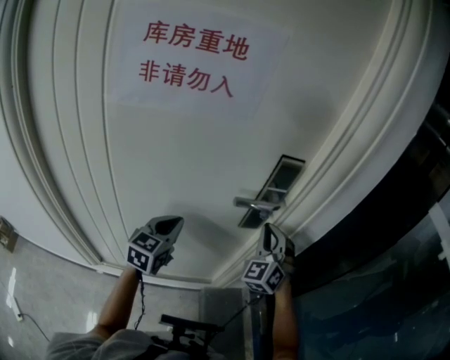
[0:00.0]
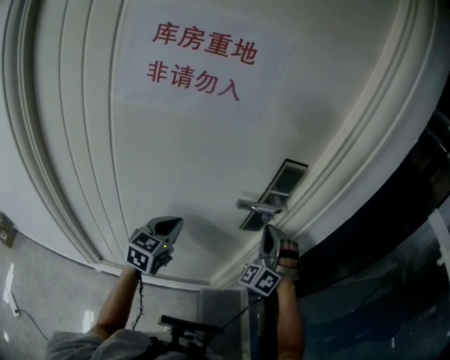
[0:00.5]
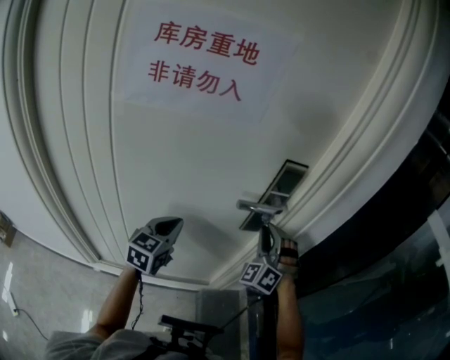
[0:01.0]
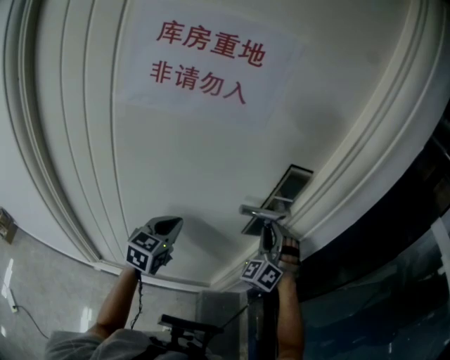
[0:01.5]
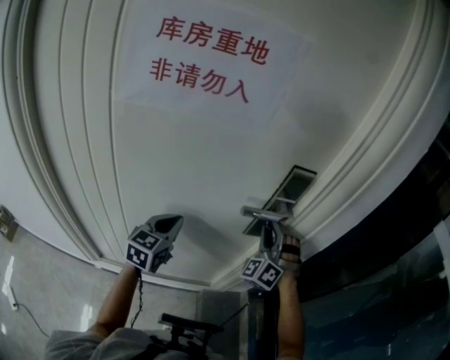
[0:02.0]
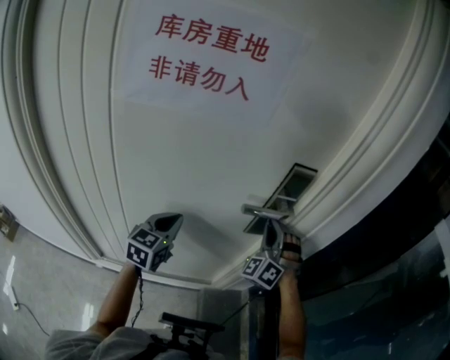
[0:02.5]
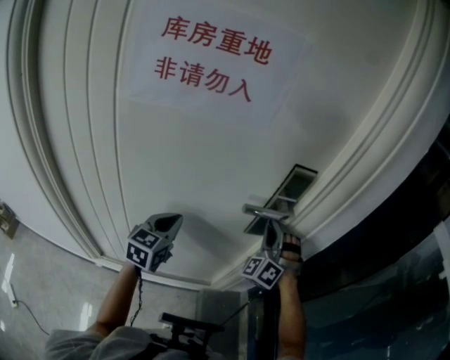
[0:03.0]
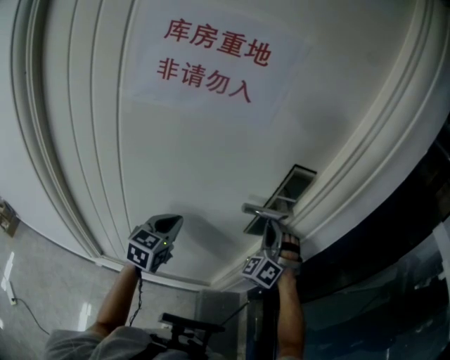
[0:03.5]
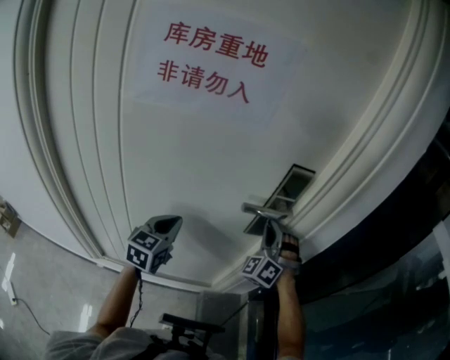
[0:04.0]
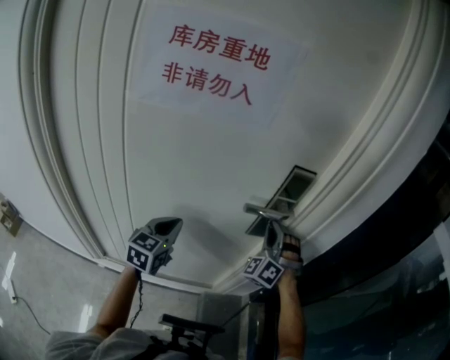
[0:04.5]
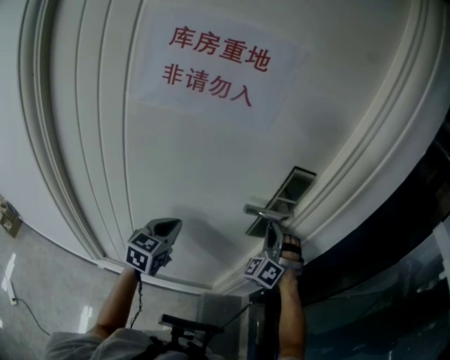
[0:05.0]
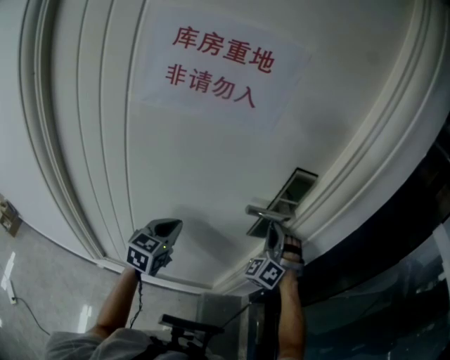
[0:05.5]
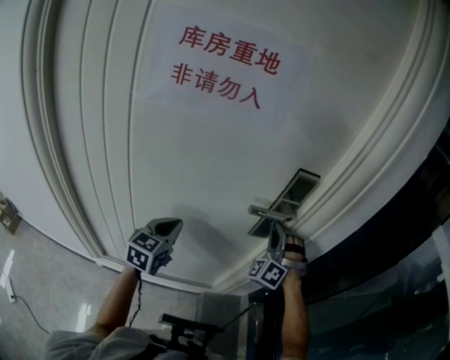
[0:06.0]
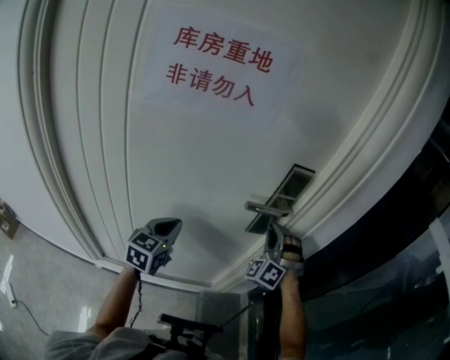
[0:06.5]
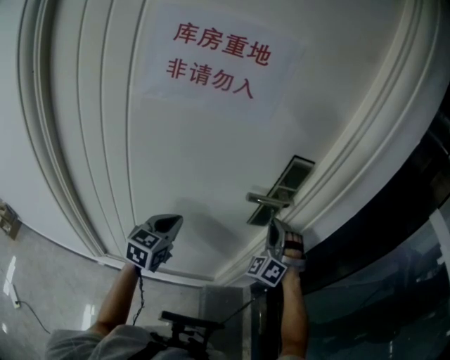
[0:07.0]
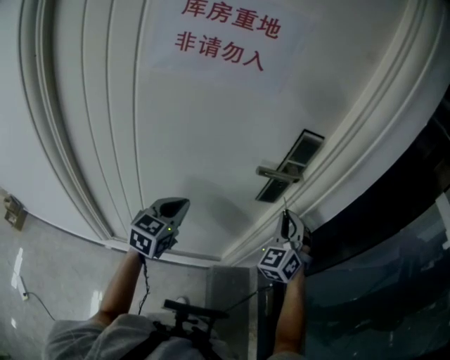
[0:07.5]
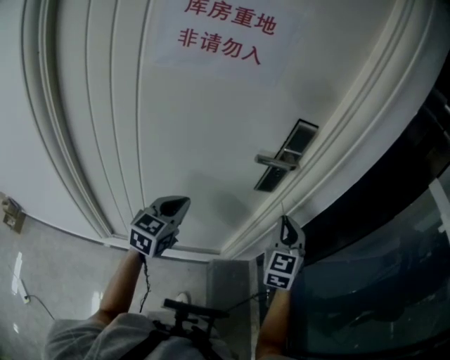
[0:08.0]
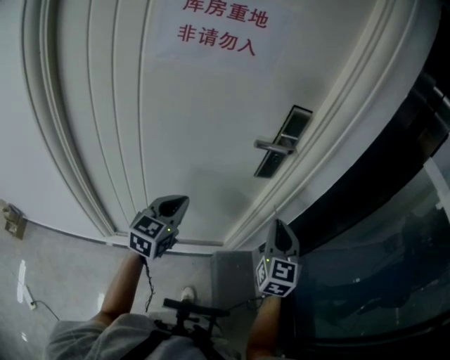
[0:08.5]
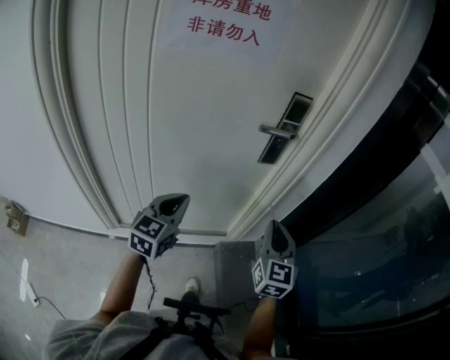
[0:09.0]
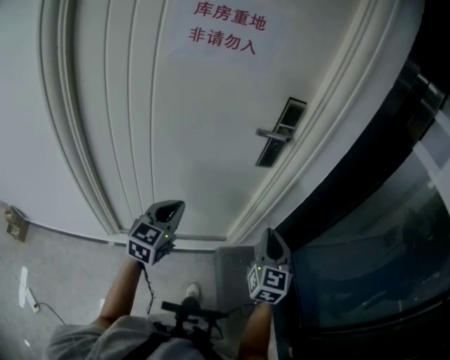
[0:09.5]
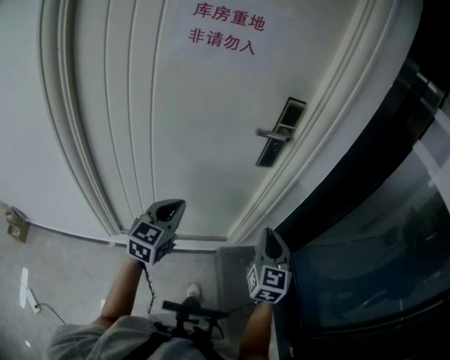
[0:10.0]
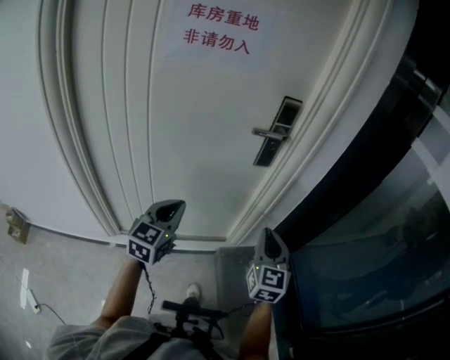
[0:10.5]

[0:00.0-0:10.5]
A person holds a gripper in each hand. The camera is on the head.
0:00.0 to 0:02.0: The right gripper rotates some 20 degrees, and opens.
0:02.0 to 0:06.5: The grippers make only small movements.
0:06.5 to 0:08.5: The right gripper shifts some 20 cm backward, and rotates around the line of its fingers by roughly 70 degrees, clockwise from behind. Meanwhile the left gripper goes about 10 cm backward.
0:08.5 to 0:10.5: Both grippers move backward, about 10 cm.

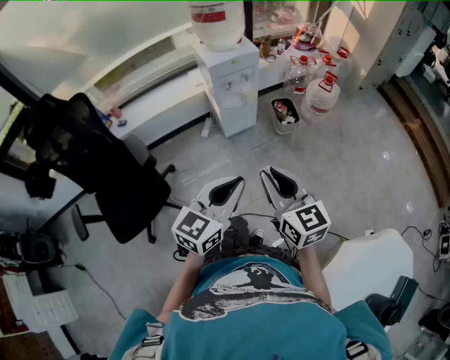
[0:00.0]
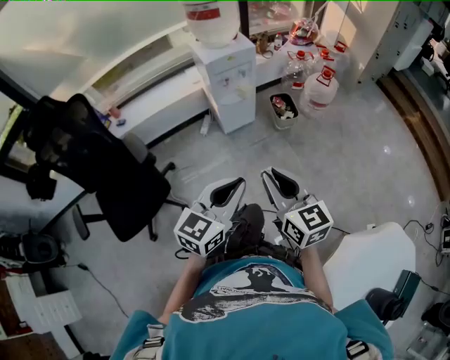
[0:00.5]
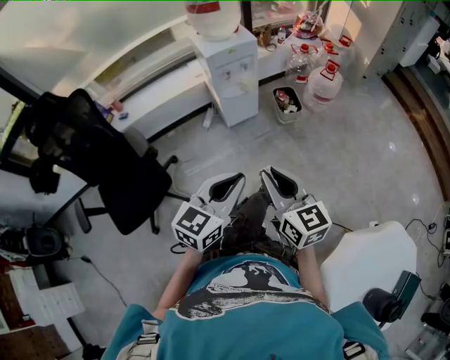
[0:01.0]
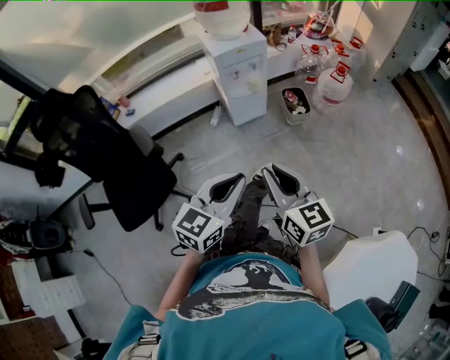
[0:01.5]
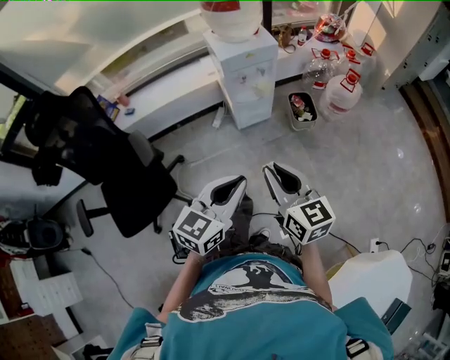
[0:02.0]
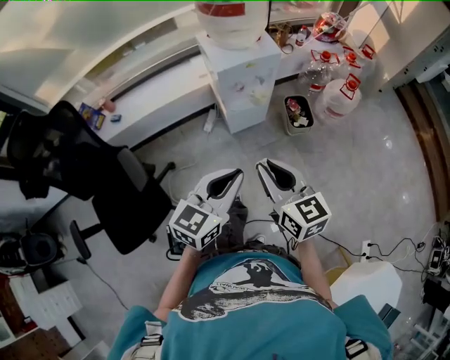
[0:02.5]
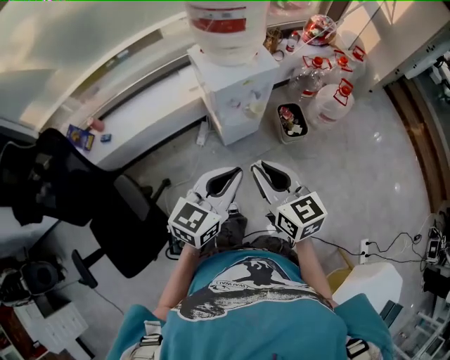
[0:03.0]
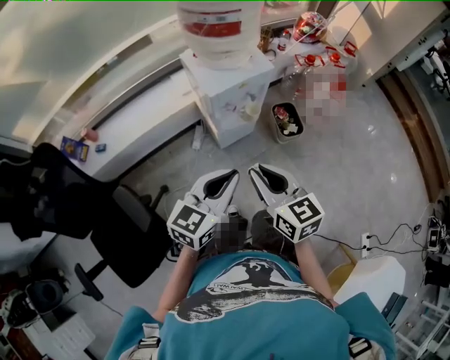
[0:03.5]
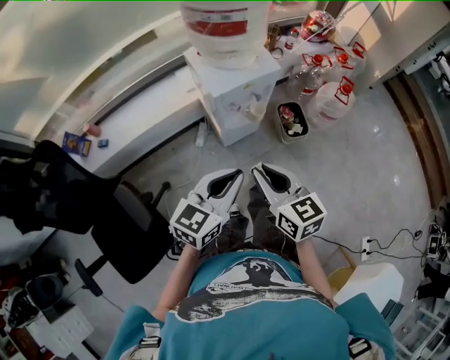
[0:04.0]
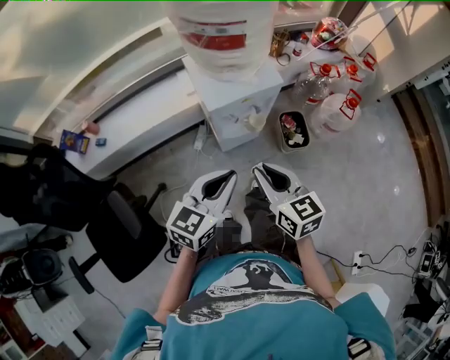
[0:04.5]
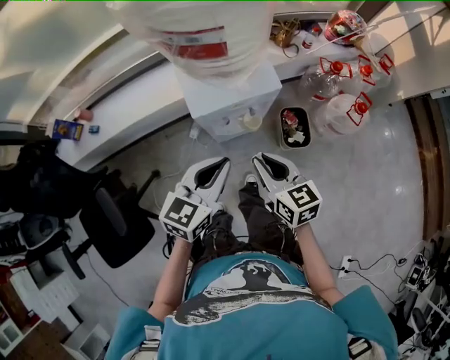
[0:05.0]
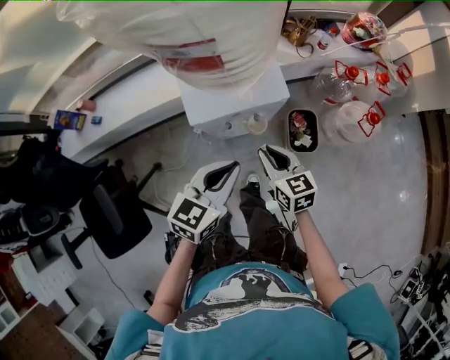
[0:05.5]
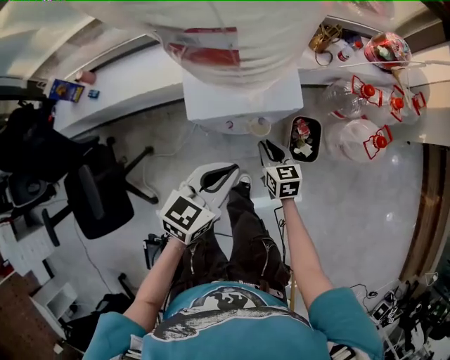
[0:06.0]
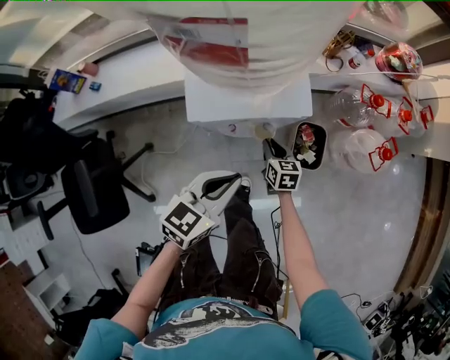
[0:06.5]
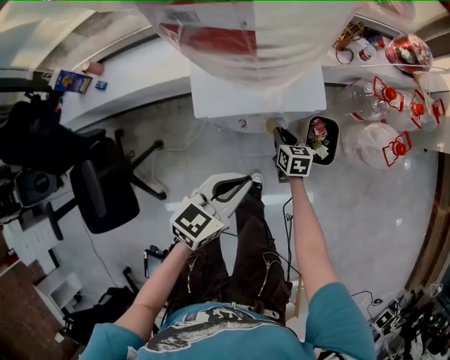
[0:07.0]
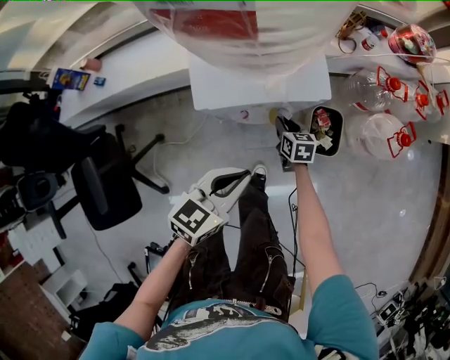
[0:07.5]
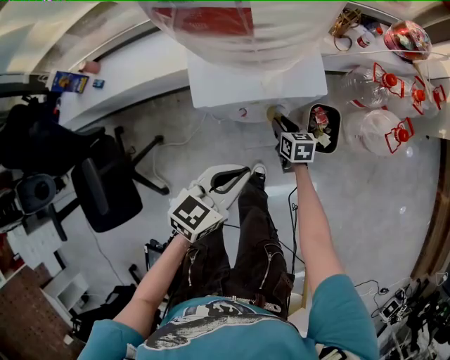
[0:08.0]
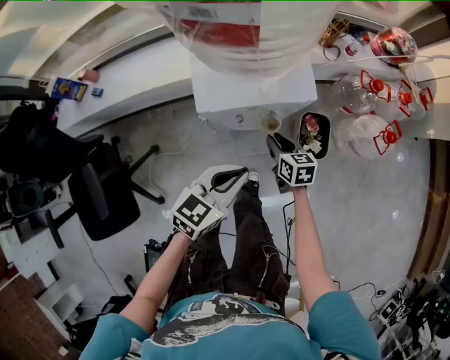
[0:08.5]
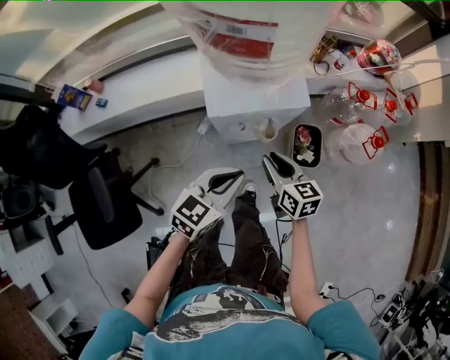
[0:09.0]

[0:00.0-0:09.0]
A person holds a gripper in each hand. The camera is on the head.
0:00.0 to 0:02.0: The two grippers go roughly 10 cm forward.
0:02.0 to 0:04.5: The two grippers go about 30 cm forward.
0:04.5 to 0:07.0: The right gripper is displaced downward and forward by about 40 cm, and swivels about 20 degrees; the left gripper travels downward, forward and to the right by about 20 cm.
0:07.0 to 0:09.0: The right gripper shifts about 25 cm upward and backward. The left gripper shifts by about 5 cm.

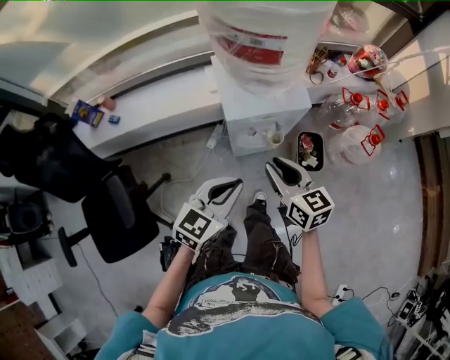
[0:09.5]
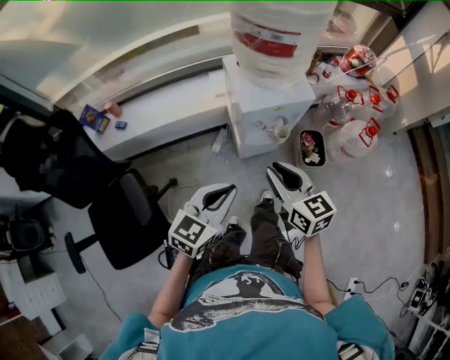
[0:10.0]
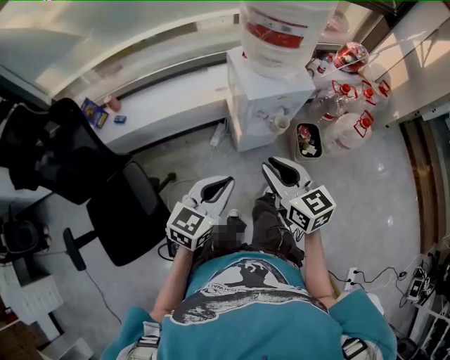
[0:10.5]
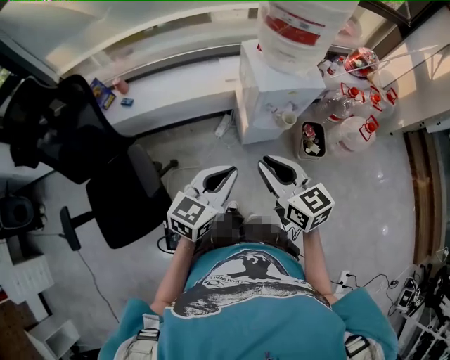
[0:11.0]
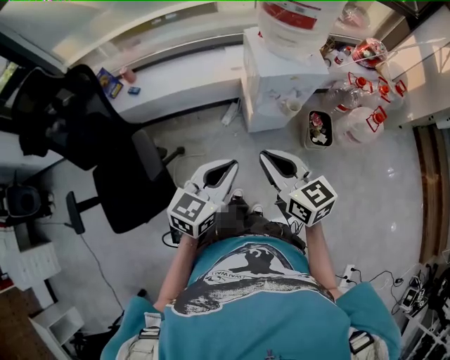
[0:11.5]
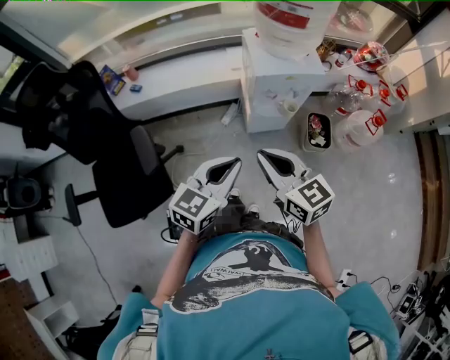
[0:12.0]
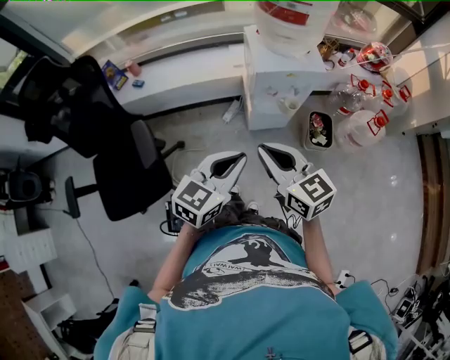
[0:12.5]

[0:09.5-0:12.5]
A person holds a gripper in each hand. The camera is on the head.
0:09.5 to 0:11.0: The left gripper moves to the left and backward, about 15 cm. The right gripper moves backward, to the left and upward, roughly 20 cm.
0:11.0 to 0:12.5: The left gripper shifts roughly 5 cm to the right, while the right gripper moves about 5 cm.

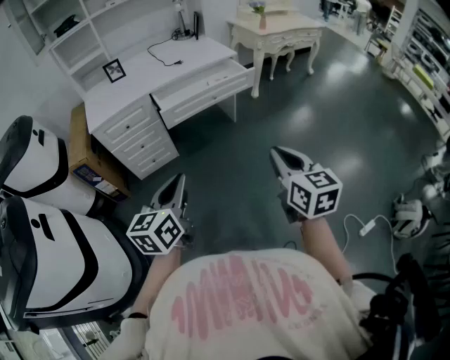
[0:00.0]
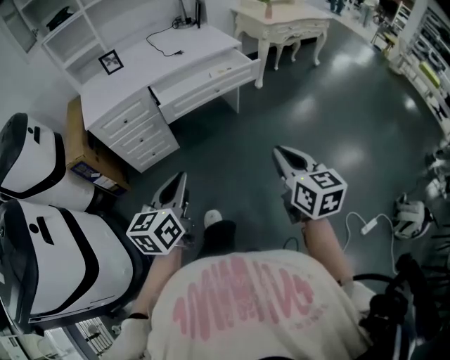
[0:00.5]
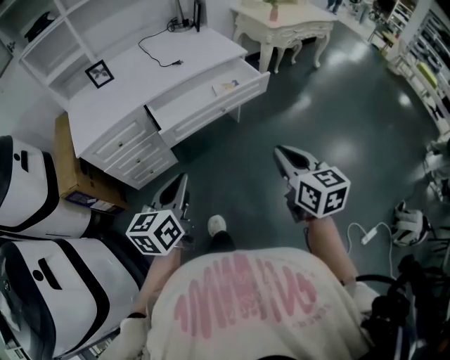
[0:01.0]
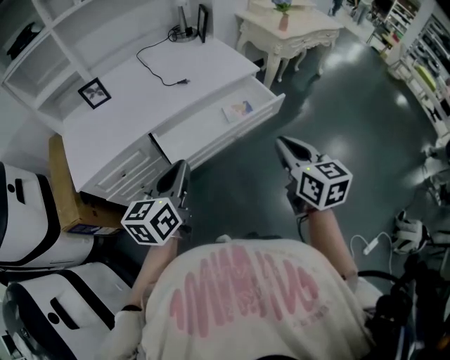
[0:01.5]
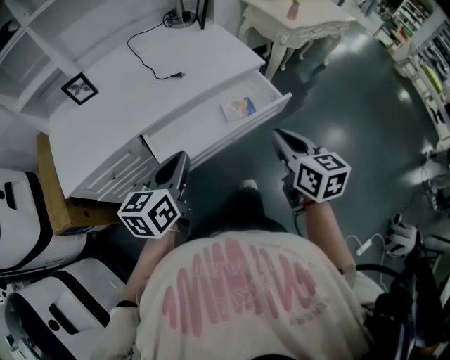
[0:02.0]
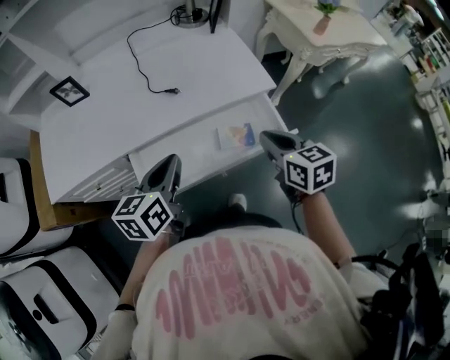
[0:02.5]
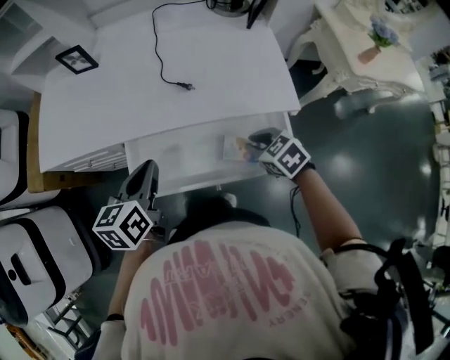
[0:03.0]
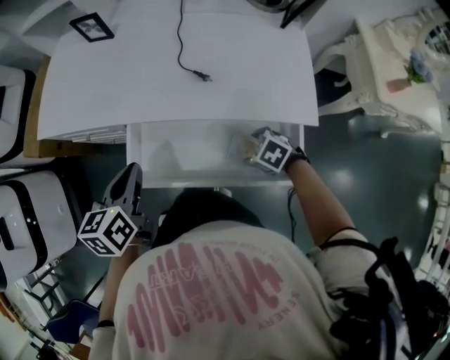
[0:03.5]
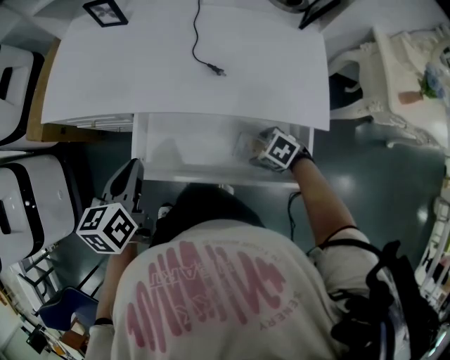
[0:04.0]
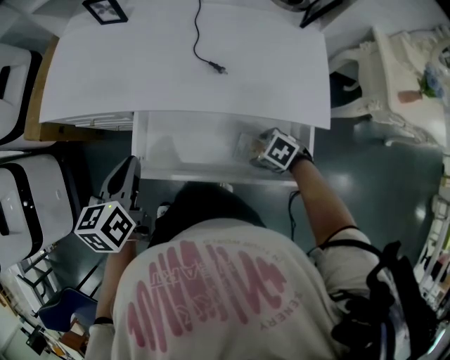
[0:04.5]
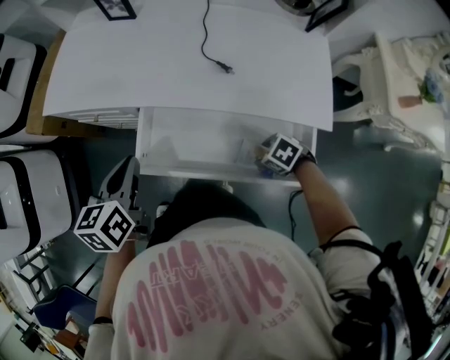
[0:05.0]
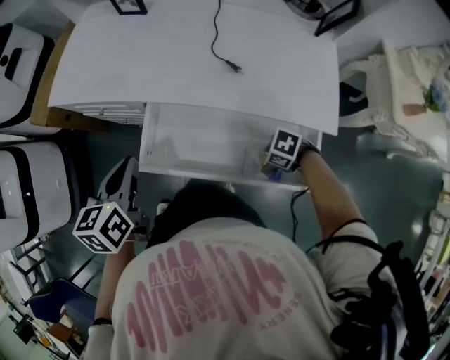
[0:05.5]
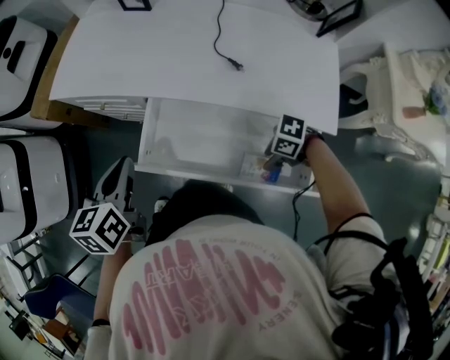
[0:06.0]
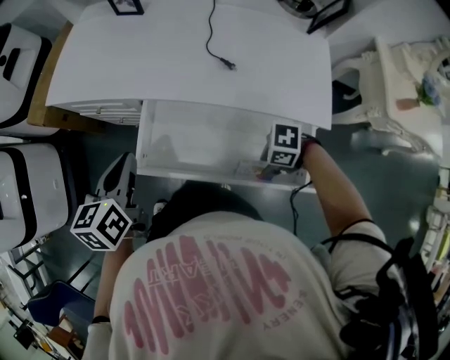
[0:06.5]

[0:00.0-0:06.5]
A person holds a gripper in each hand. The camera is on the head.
0:00.0 to 0:02.0: The pair of grippers is taken forward, about 50 cm.
0:02.0 to 0:04.5: The left gripper moves approximately 15 cm, and turns by some 50 degrees. Meanwhile the right gripper goes approximately 30 cm downward, tilts its fingers approximately 50 degrees downward, and opens its fingers.
0:04.5 to 0:06.5: The right gripper moves approximately 10 cm, rotates some 30 degrees, and closes up.
